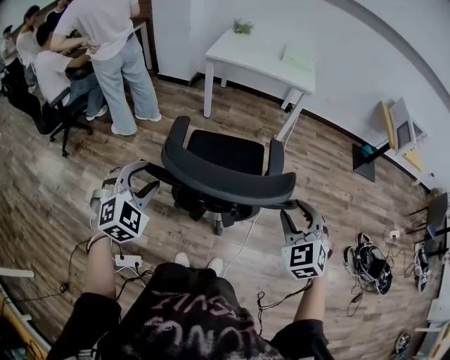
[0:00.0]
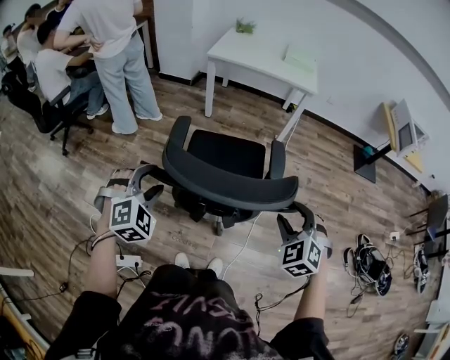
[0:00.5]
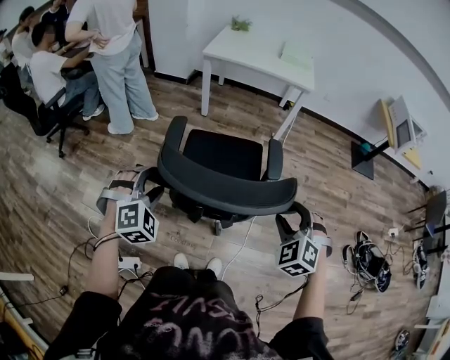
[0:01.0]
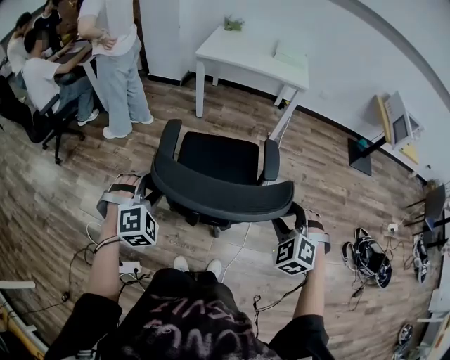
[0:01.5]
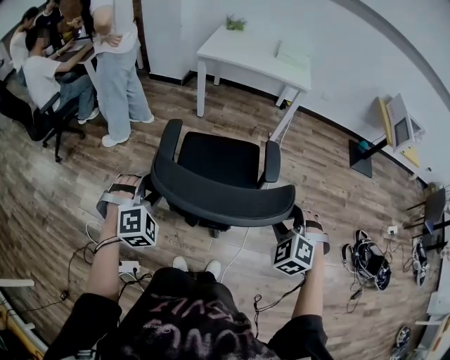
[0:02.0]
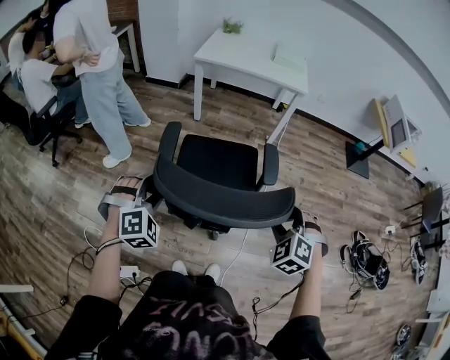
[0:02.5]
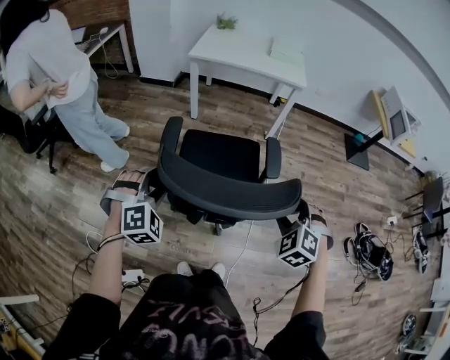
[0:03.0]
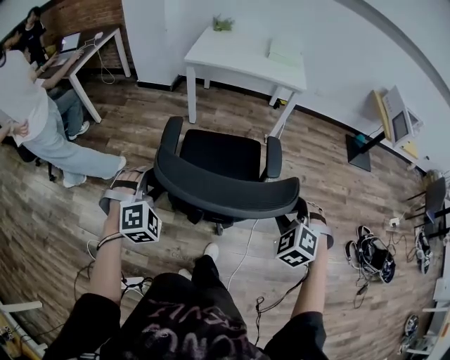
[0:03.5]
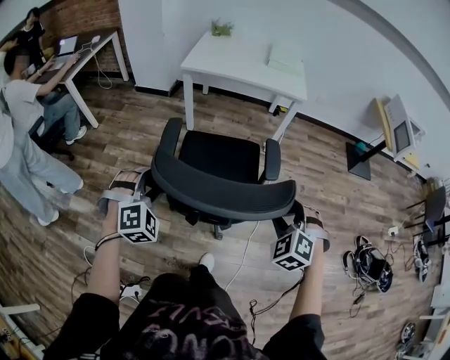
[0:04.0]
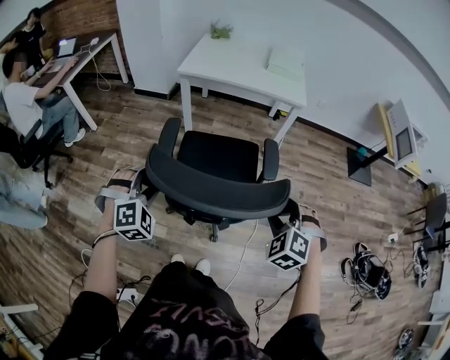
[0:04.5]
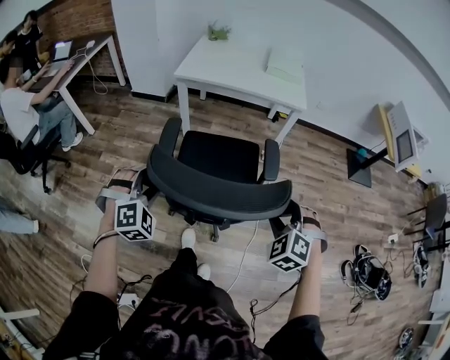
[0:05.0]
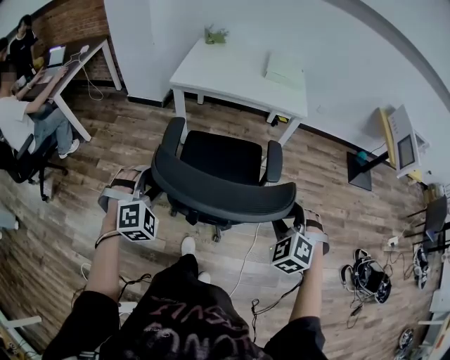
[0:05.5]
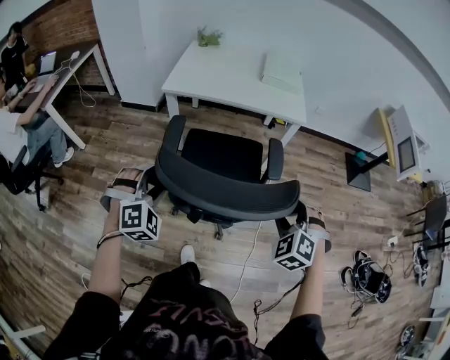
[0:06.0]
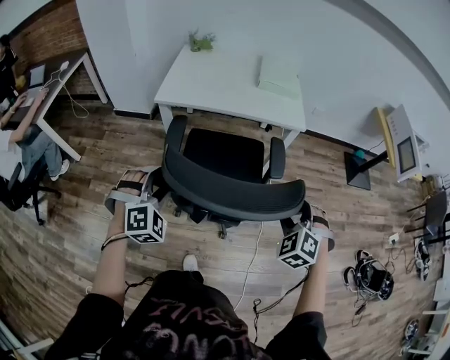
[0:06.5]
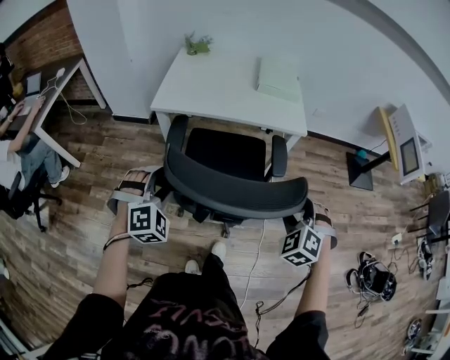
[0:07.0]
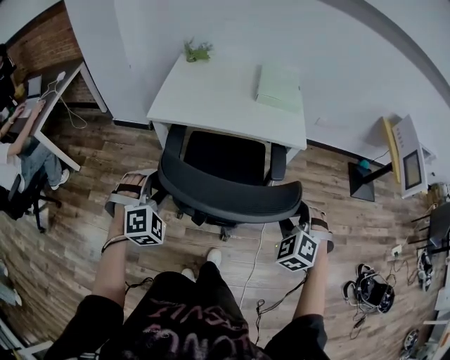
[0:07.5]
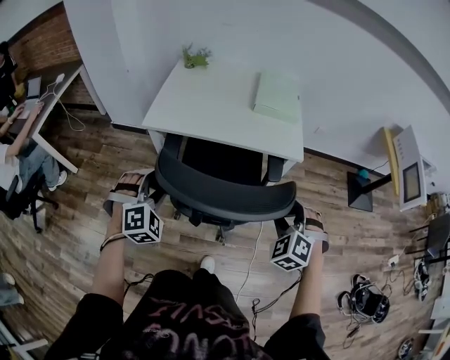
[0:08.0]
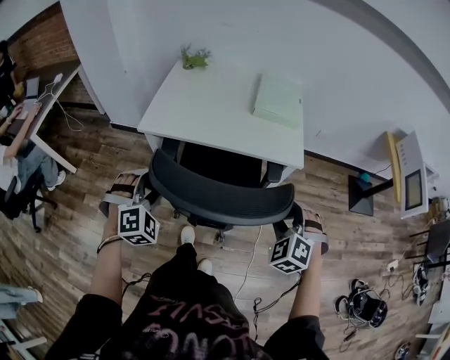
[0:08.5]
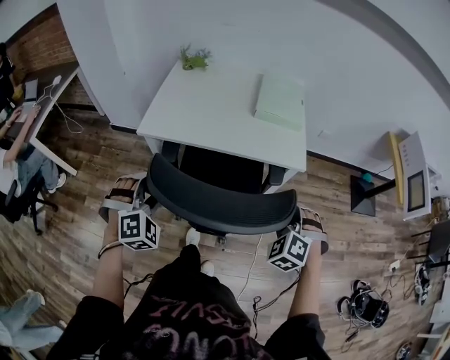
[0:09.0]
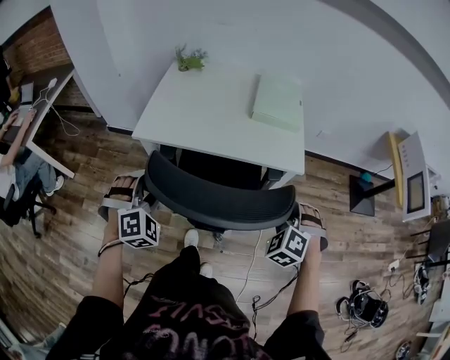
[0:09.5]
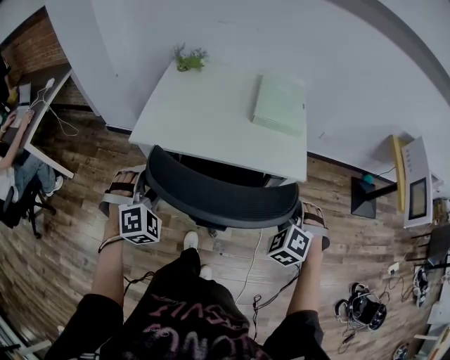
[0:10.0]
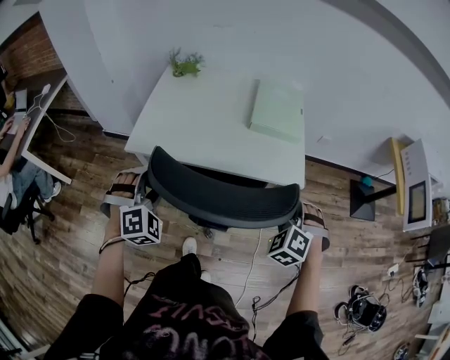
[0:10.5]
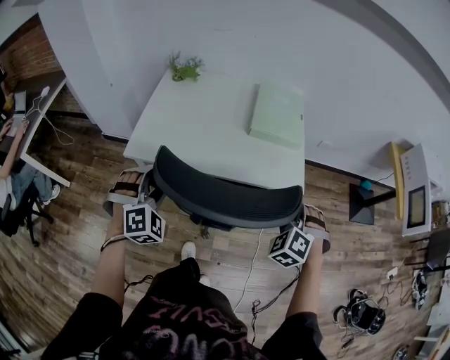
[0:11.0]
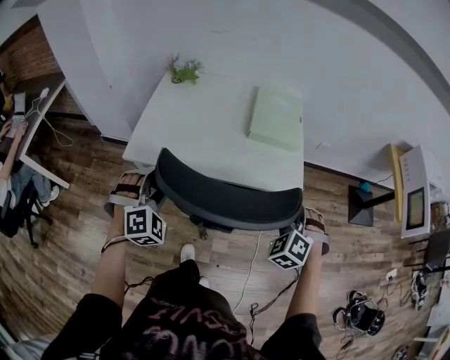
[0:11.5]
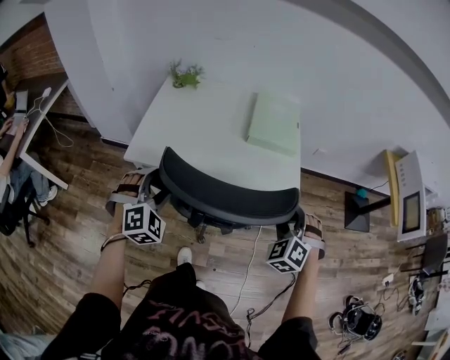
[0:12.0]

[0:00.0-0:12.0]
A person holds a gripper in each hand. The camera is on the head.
0:00.0 to 0:02.0: The grippers both shift downward by about 5 cm. The left gripper swivels some 20 degrees; the right gripper rotates roughly 20 degrees.
0:02.0 to 0:04.0: Both grippers travel together forward, approximately 15 cm.
0:04.0 to 0:06.0: The grippers both shift forward by some 25 cm.
0:06.0 to 0:08.0: Both grippers move forward, some 25 cm.
0:08.0 to 0:10.0: Both grippers travel together forward, roughly 15 cm.
0:10.0 to 0:12.0: The grippers both shift forward by approximately 5 cm.

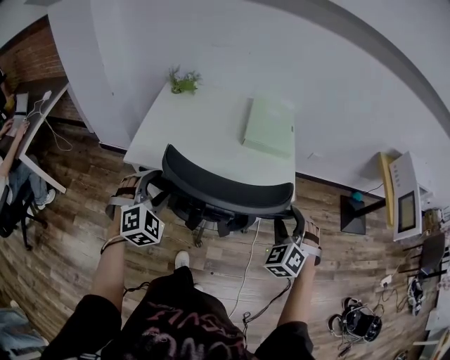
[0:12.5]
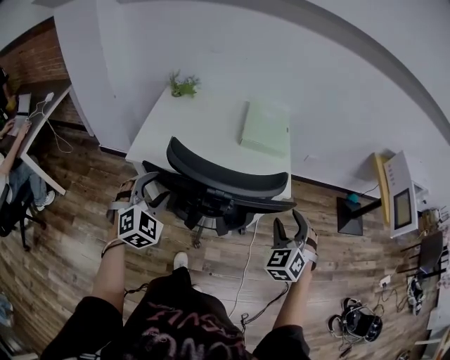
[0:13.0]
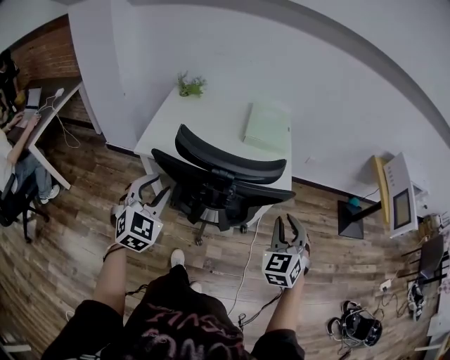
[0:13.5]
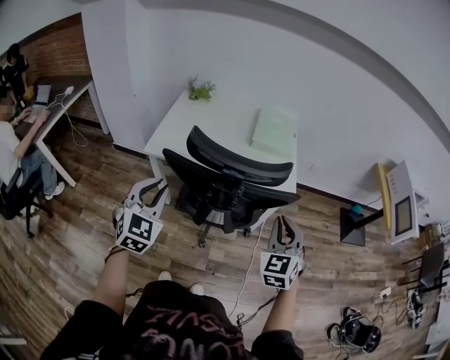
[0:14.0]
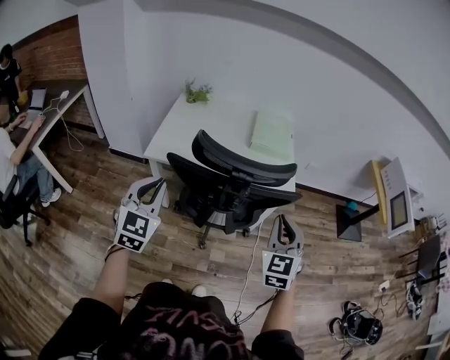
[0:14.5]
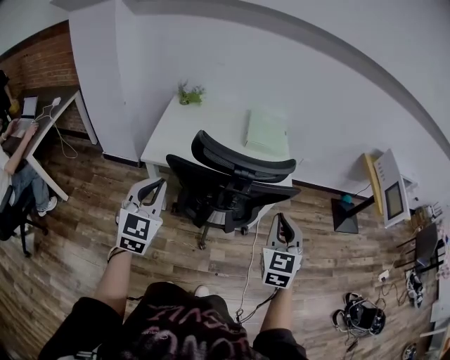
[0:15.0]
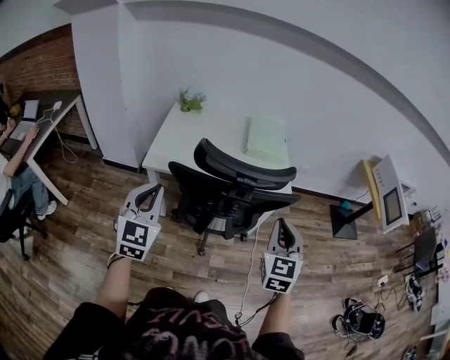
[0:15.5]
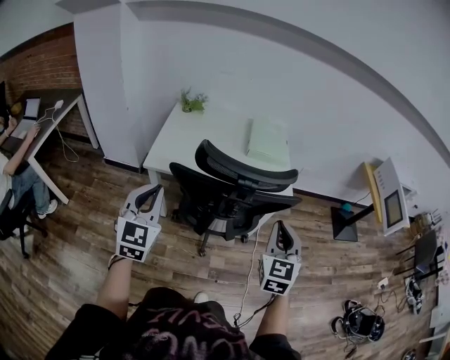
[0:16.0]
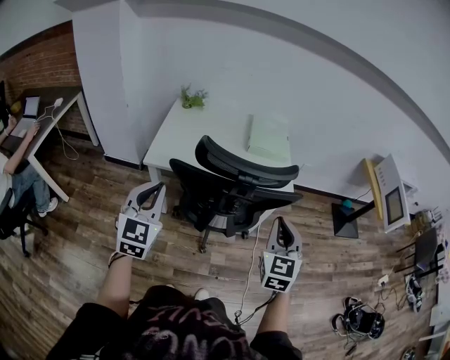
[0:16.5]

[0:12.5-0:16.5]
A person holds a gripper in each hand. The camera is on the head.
0:12.5 to 0:14.5: Both grippers move backward and upward, roughly 20 cm. The right gripper rotates about 40 degrees, and closes up; the left gripper changes its angle by roughly 40 degrees, and closes up.
0:14.5 to 0:16.5: The grippers move only a little.

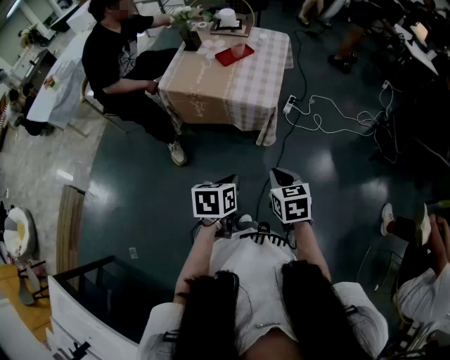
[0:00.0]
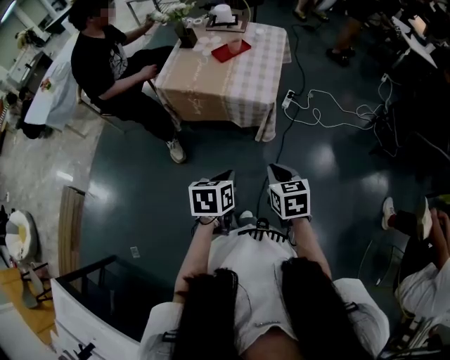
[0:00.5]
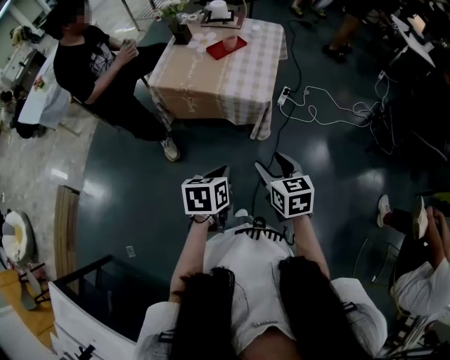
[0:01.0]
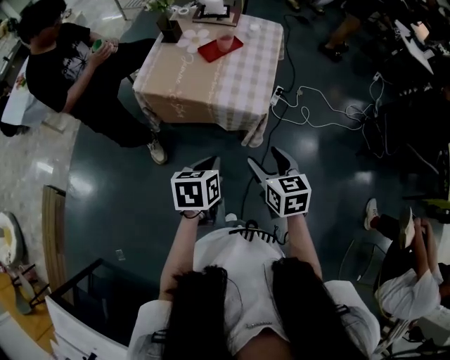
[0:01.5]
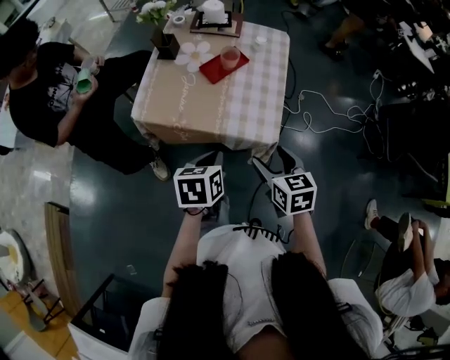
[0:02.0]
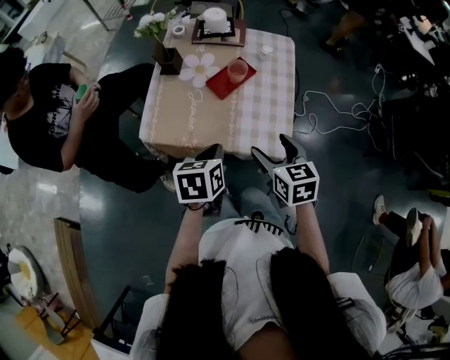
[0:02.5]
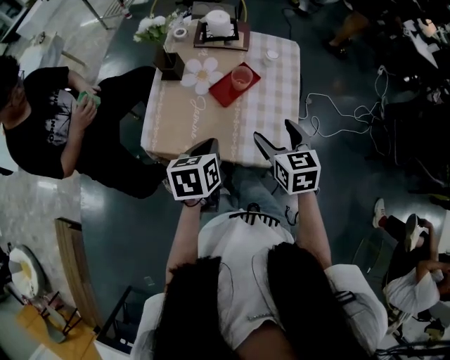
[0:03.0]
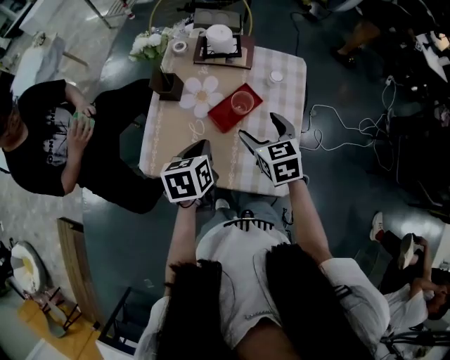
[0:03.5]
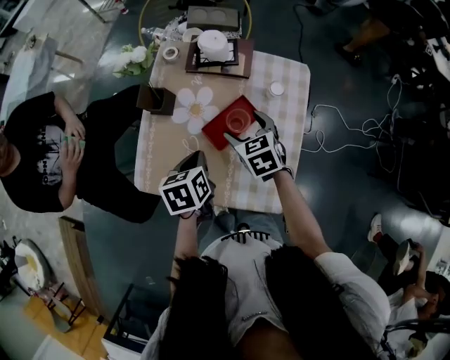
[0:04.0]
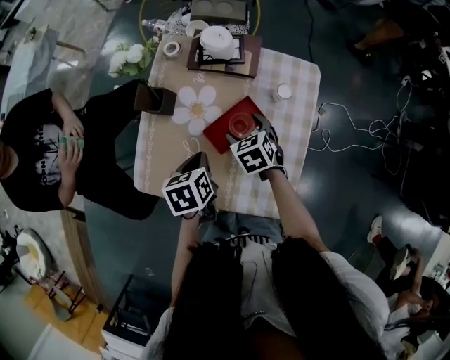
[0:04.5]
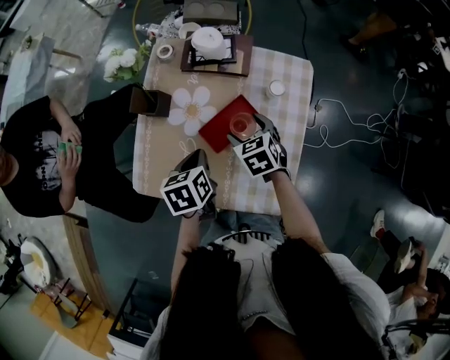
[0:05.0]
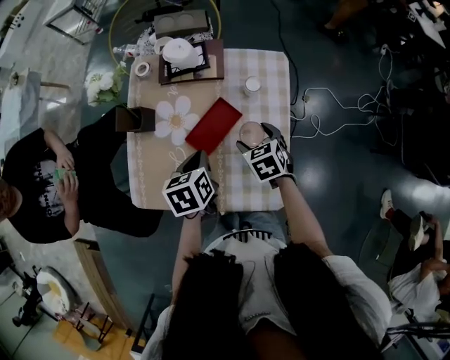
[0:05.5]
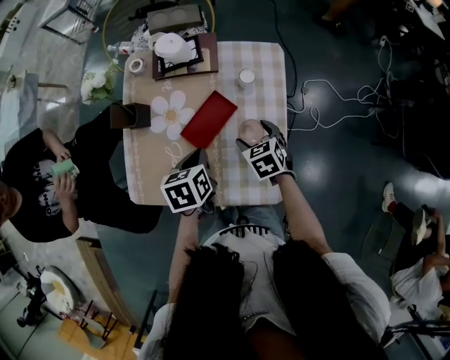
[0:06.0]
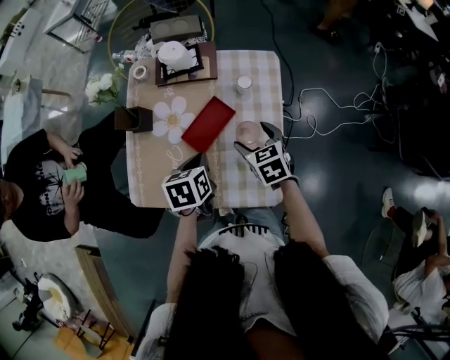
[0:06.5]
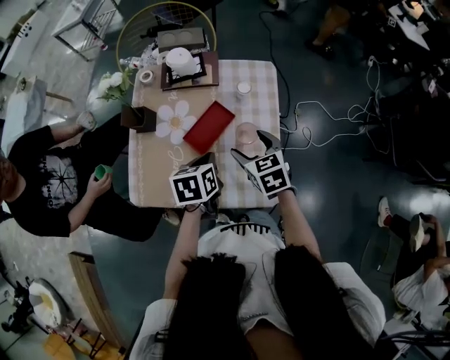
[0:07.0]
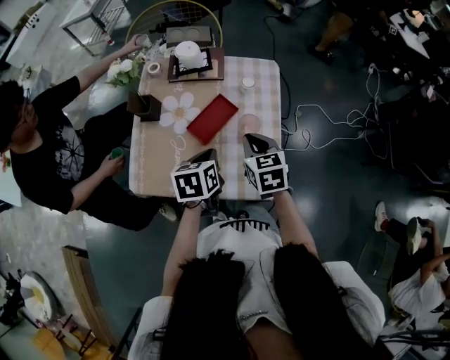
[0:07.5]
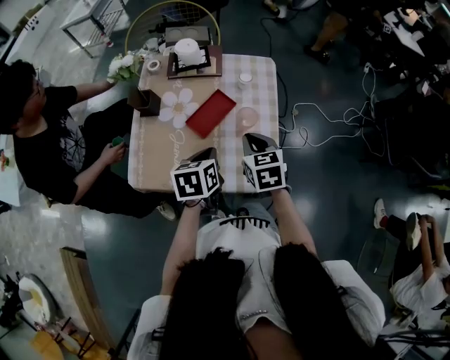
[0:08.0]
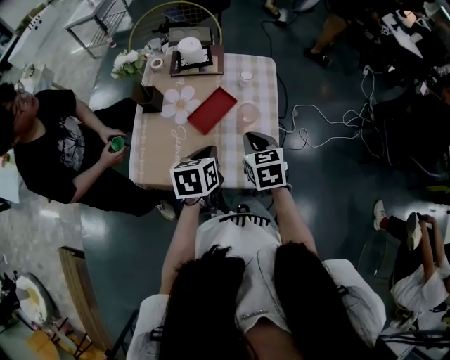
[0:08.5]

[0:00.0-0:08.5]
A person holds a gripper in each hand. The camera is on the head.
0:00.0 to 0:02.0: The grippers both shift forward by some 30 cm. The right gripper opens up.
0:02.0 to 0:04.0: The two grippers go some 35 cm forward.
0:04.0 to 0:06.5: The left gripper heads to the right, covering about 5 cm. Meanwhile the right gripper heads to the right and backward, covering roughly 10 cm.
0:06.5 to 0:08.5: Both grippers move backward and upward, roughly 10 cm. The right gripper closes its fingers.

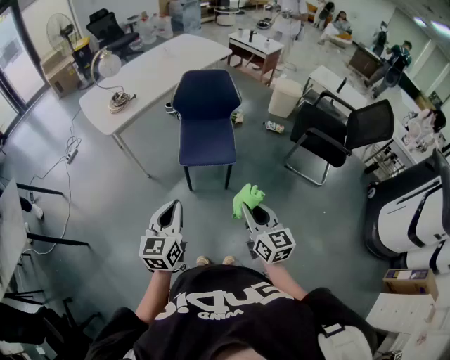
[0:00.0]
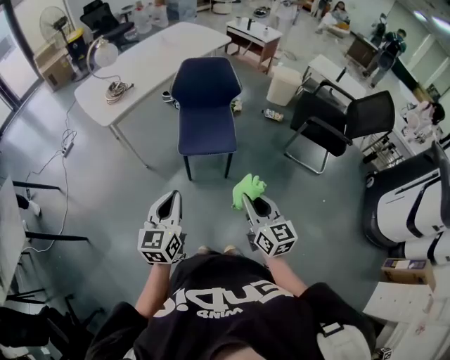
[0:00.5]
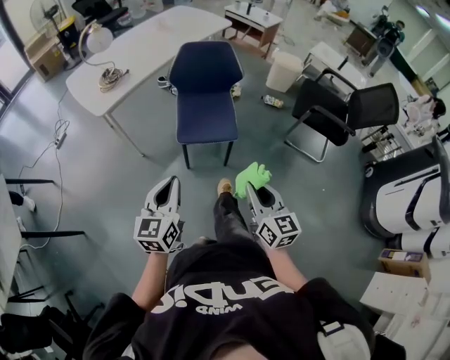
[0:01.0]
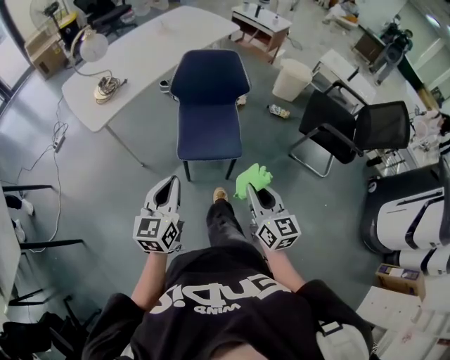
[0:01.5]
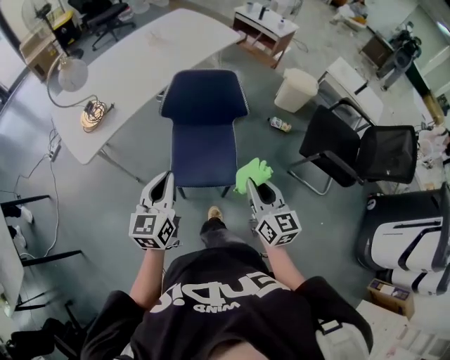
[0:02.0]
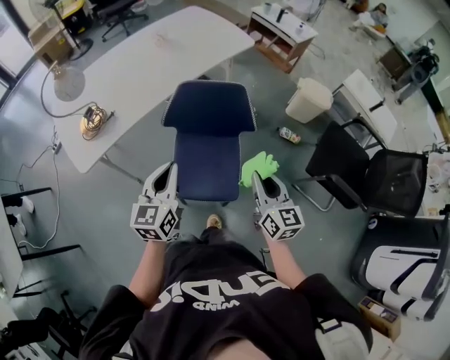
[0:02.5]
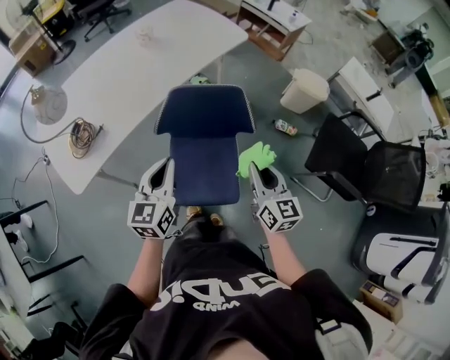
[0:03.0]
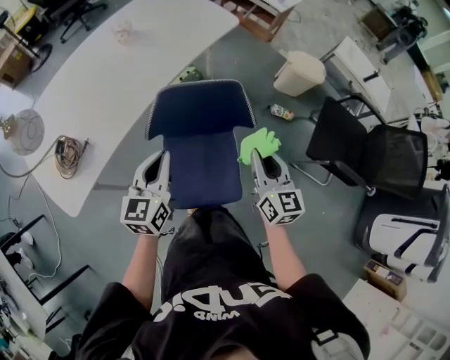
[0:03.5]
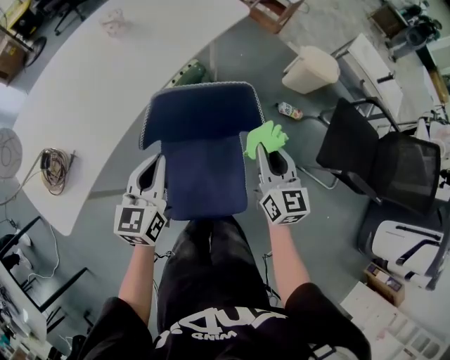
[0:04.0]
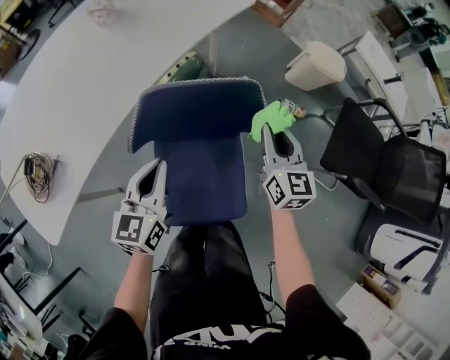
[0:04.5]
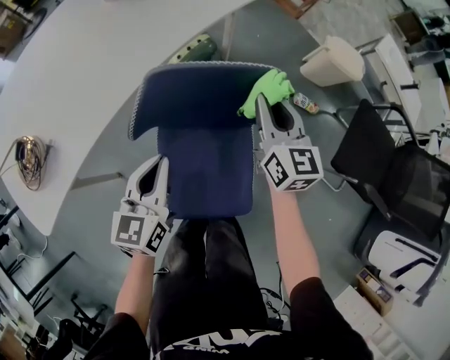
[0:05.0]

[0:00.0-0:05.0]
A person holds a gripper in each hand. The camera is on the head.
0:00.0 to 0:02.5: Both grippers are carried forward, about 50 cm.
0:02.5 to 0:05.0: Both grippers travel together forward and downward, about 35 cm.
